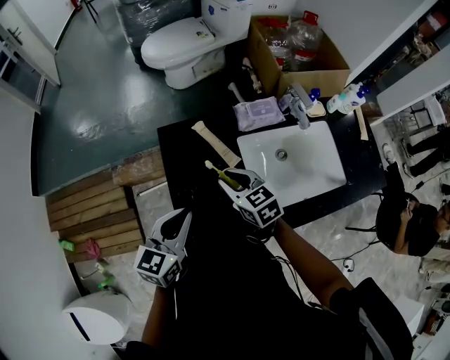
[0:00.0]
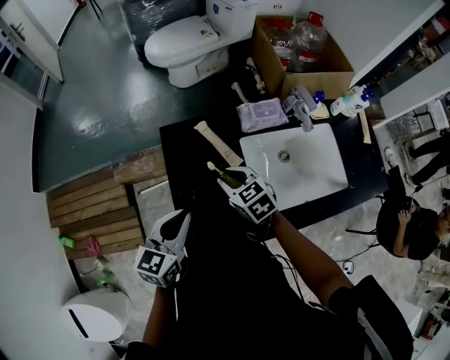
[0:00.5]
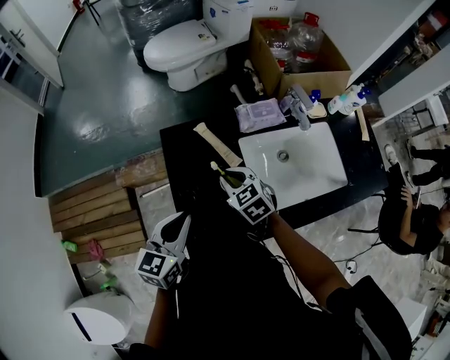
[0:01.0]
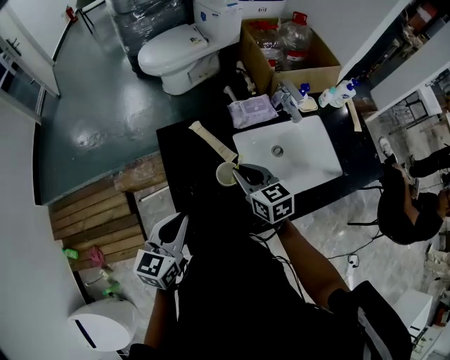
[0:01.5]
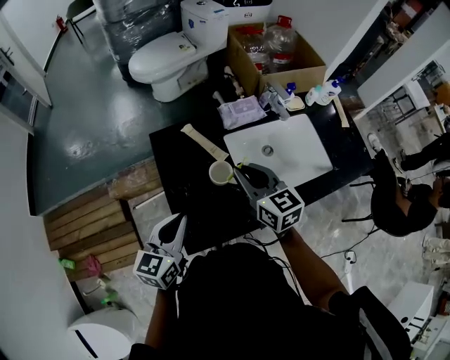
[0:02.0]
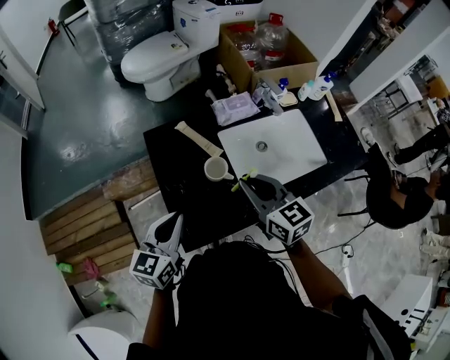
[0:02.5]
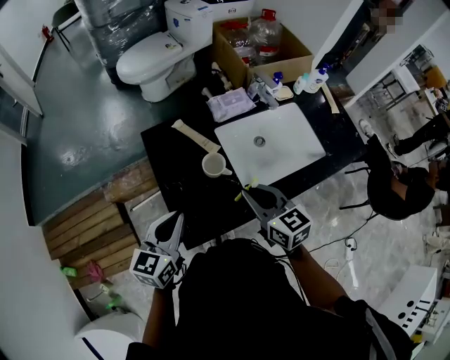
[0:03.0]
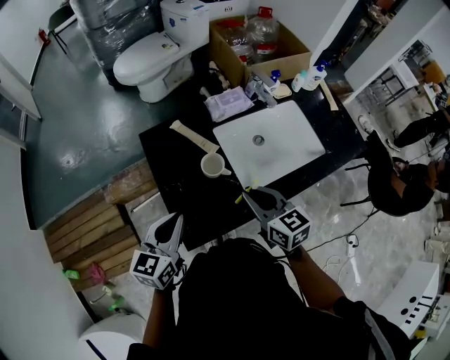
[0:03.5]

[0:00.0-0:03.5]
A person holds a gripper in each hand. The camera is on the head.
0:00.0 to 0:02.0: The right gripper is displaced upward and to the right by about 10 cm, and rotates some 20 degrees.
0:02.0 to 0:03.5: The right gripper goes approximately 10 cm backward.

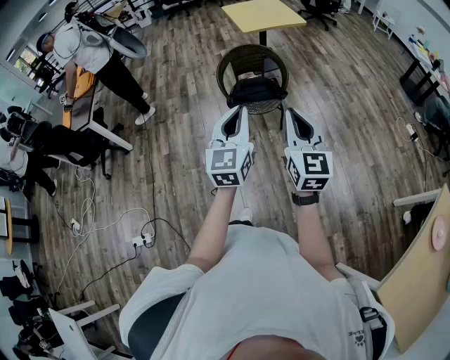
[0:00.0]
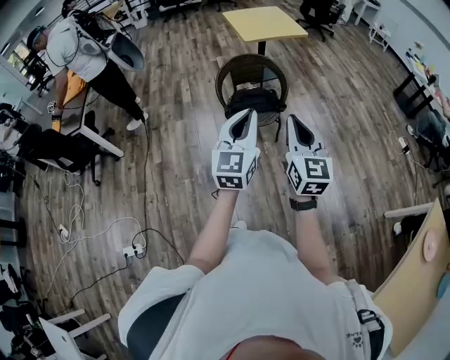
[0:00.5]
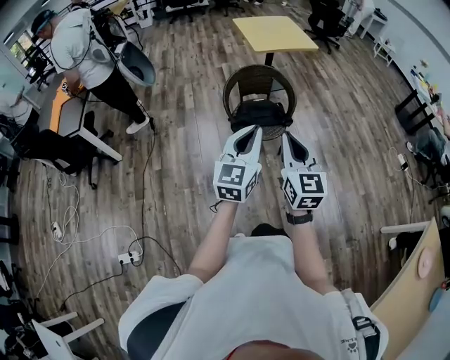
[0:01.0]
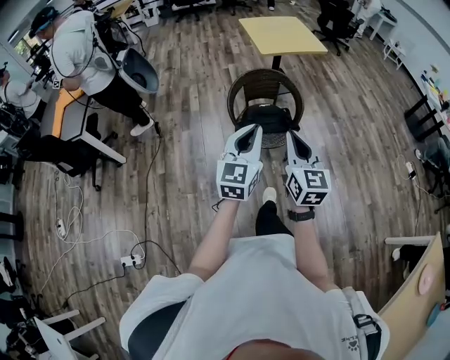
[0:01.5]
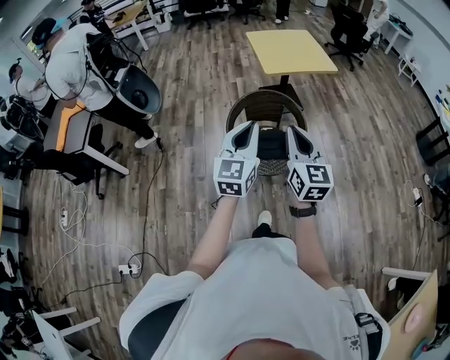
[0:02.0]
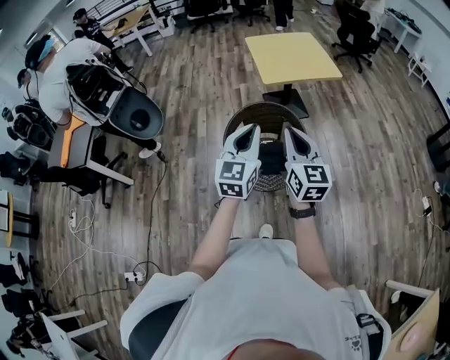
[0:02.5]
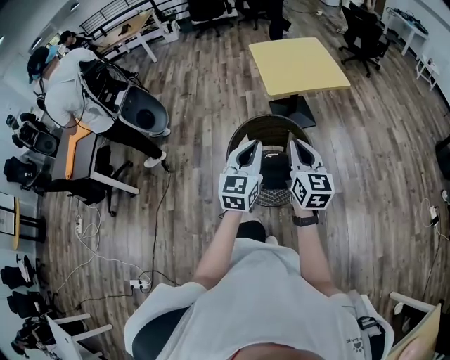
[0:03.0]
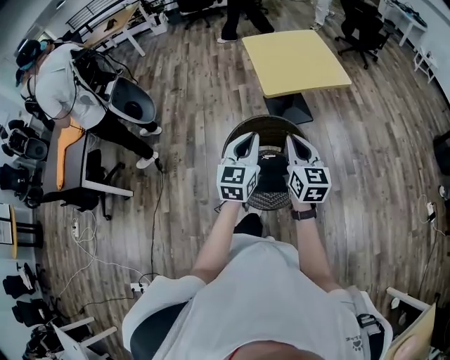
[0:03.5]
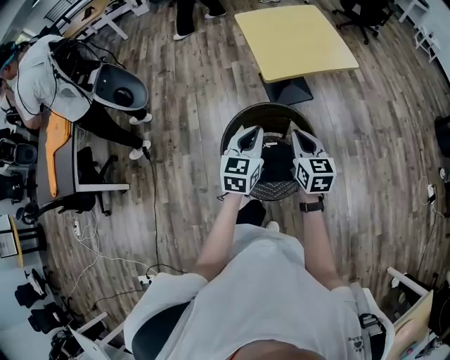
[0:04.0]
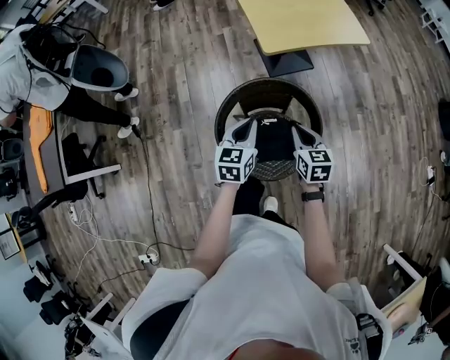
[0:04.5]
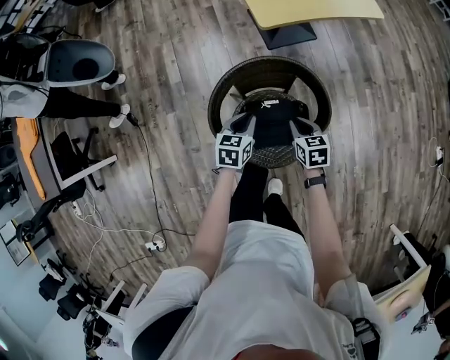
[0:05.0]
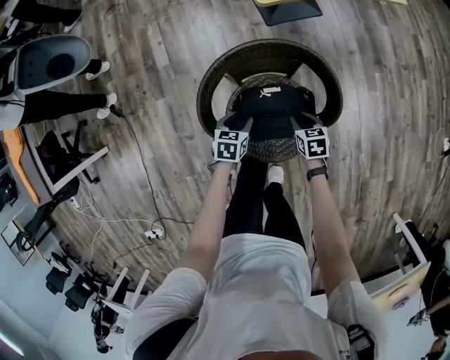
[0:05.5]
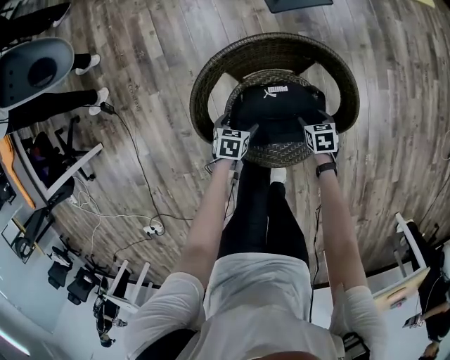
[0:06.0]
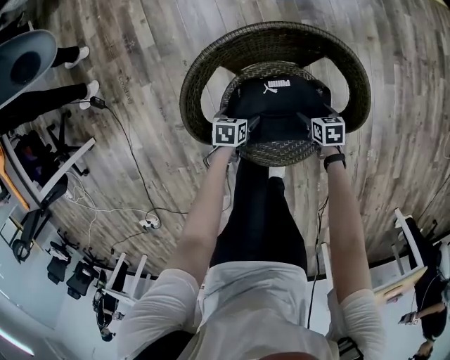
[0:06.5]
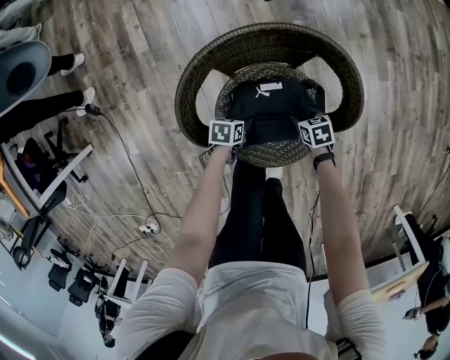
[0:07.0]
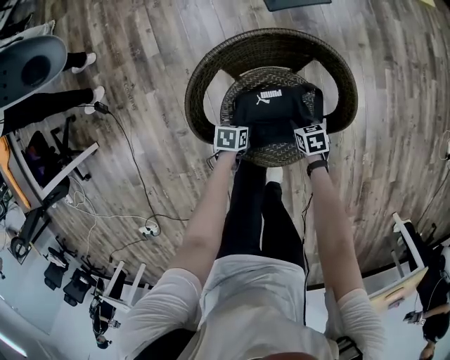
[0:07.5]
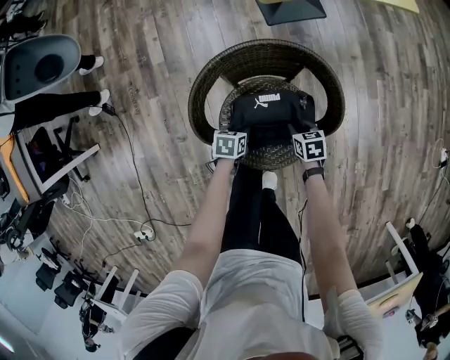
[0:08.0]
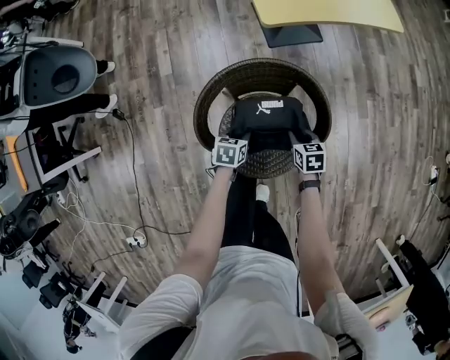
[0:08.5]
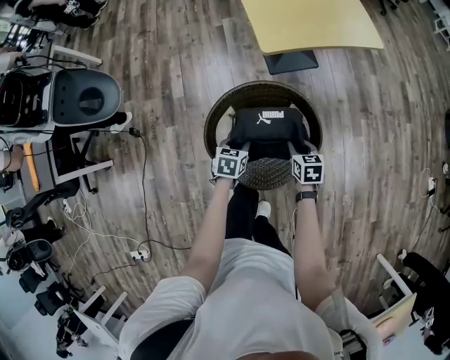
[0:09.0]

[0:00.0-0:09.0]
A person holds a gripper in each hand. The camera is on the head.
0:00.0 to 0:02.0: The two grippers go approximately 35 cm forward.
0:02.0 to 0:04.5: Both grippers move forward and downward, about 50 cm. The right gripper points its fingers approximately 40 degrees further downward. The left gripper changes its angle by about 30 degrees.
0:04.5 to 0:07.0: Both grippers travel together downward, some 50 cm. The left gripper tips its fingers downward by approximately 30 degrees, and opens up; the right gripper turns by about 40 degrees, and opens.
0:07.0 to 0:09.0: The grippers both shift upward by approximately 30 cm. The left gripper rotates approximately 30 degrees. Meanwhile the right gripper turns by roughly 30 degrees.

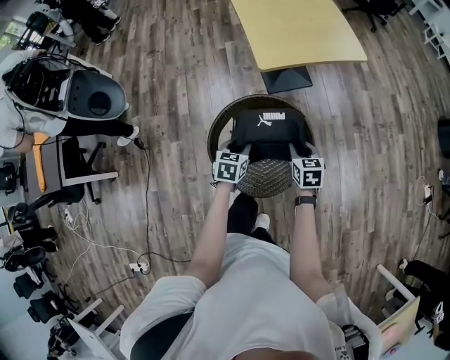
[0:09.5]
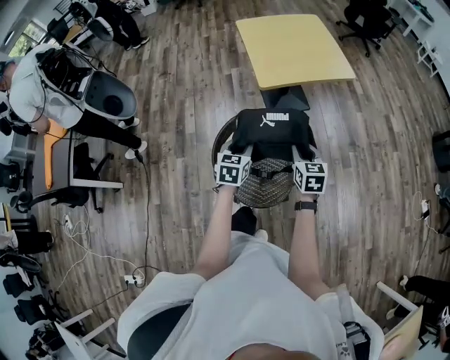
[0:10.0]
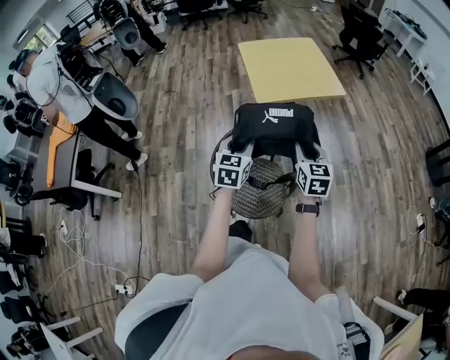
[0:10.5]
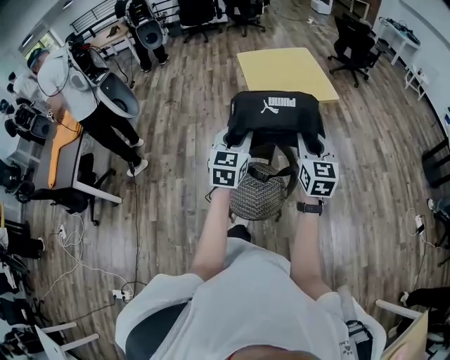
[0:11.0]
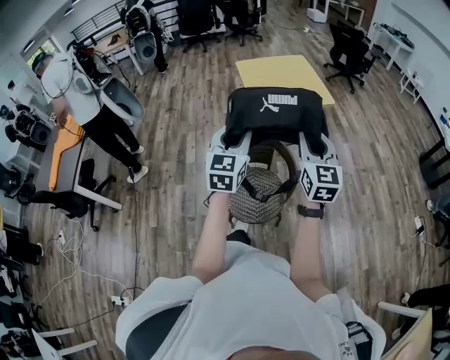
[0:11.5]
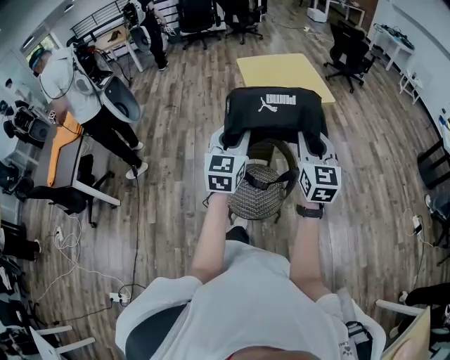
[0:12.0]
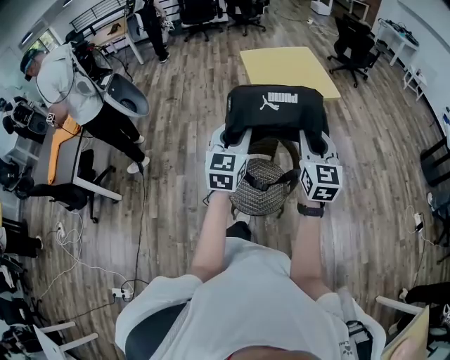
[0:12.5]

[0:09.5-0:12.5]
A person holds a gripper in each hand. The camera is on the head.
0:09.5 to 0:11.0: Both grippers move upward, approximately 35 cm. The right gripper tips its fingers upward by some 40 degrees, while the left gripper points its fingers some 30 degrees further upward.
0:11.0 to 0:12.5: The left gripper moves roughly 5 cm. Meanwhile the right gripper shifts by about 5 cm.

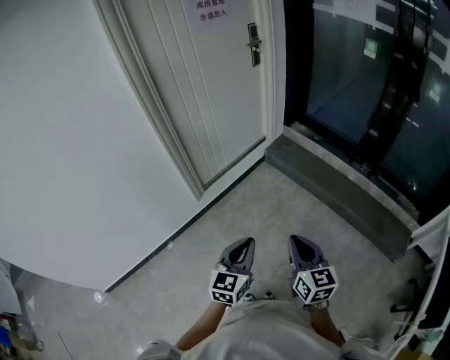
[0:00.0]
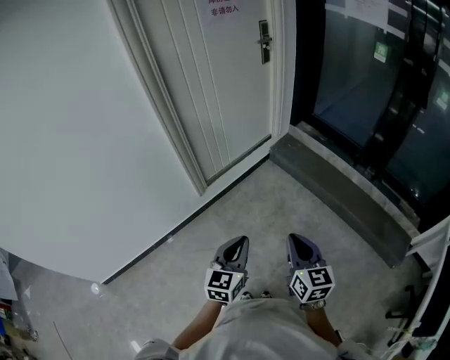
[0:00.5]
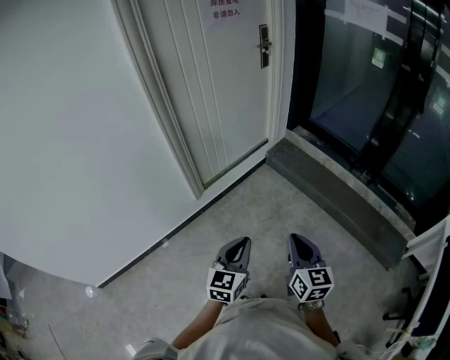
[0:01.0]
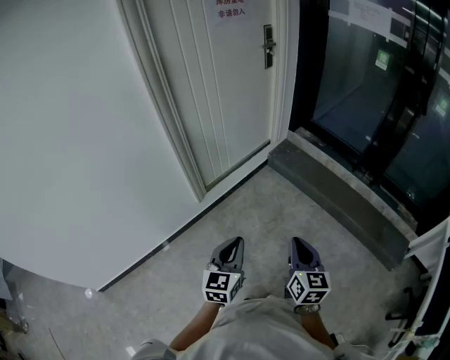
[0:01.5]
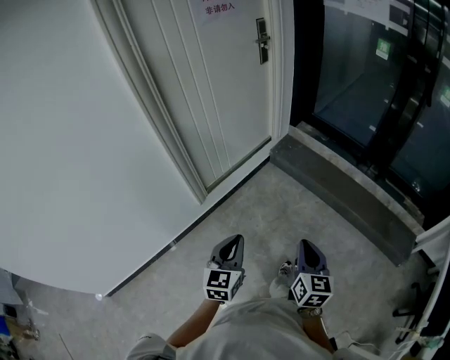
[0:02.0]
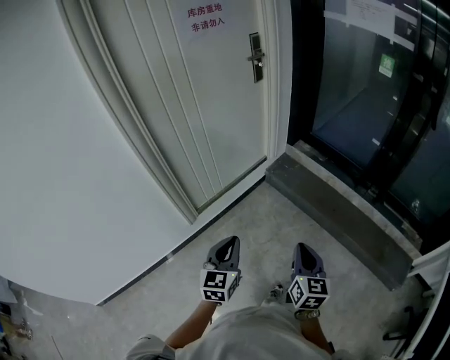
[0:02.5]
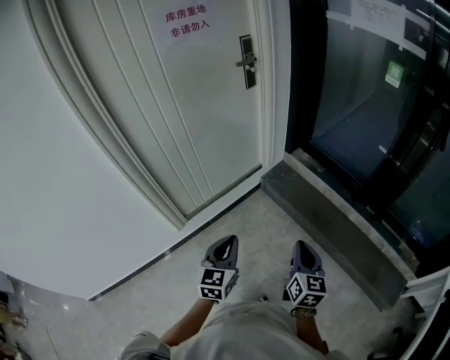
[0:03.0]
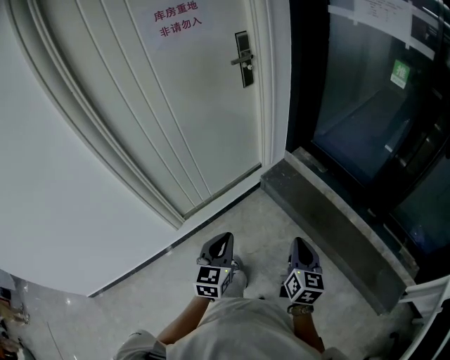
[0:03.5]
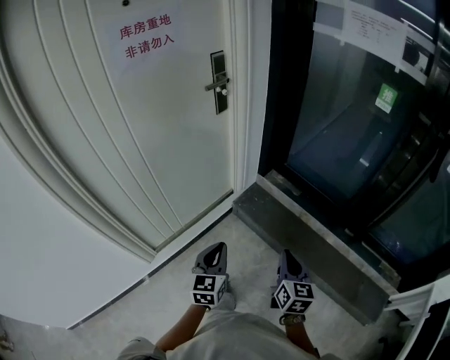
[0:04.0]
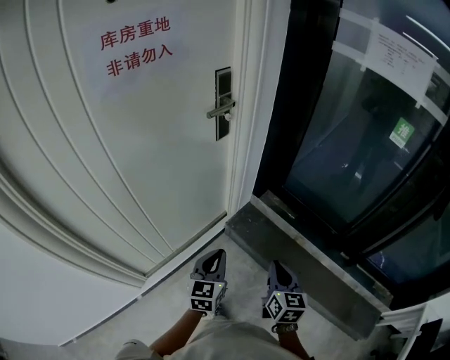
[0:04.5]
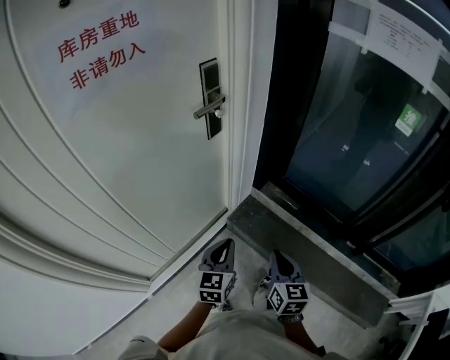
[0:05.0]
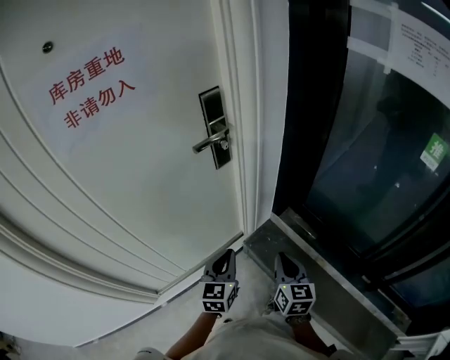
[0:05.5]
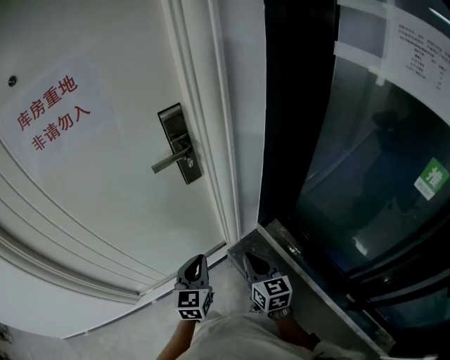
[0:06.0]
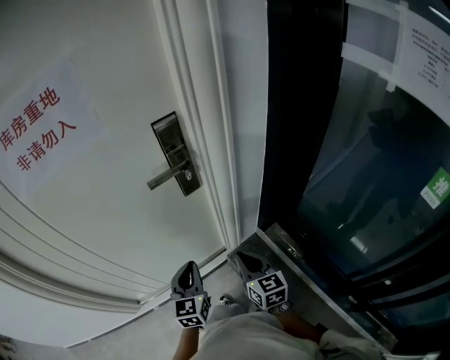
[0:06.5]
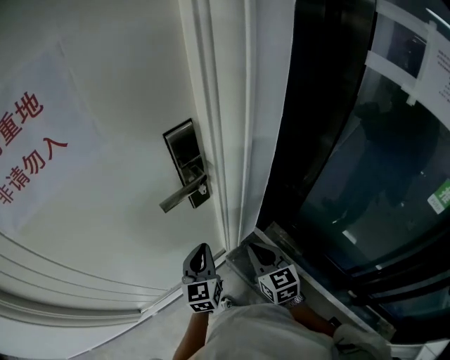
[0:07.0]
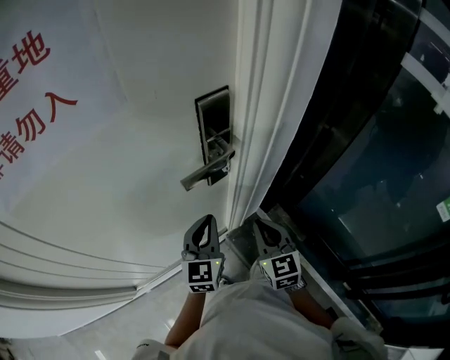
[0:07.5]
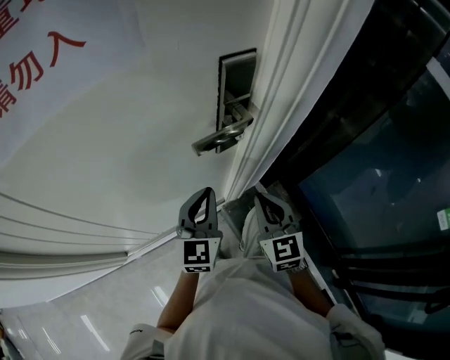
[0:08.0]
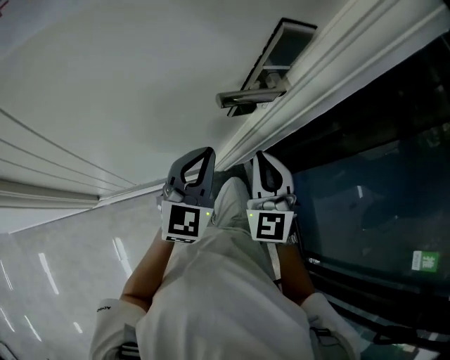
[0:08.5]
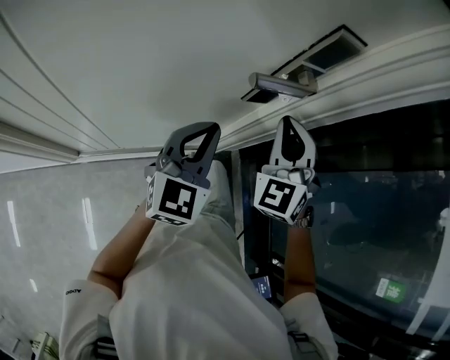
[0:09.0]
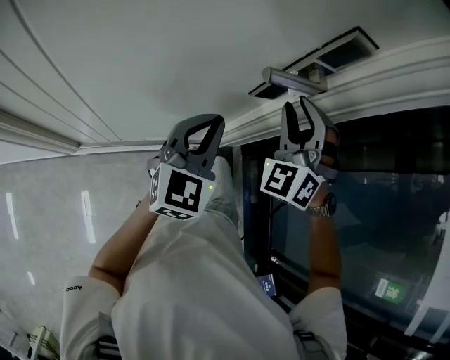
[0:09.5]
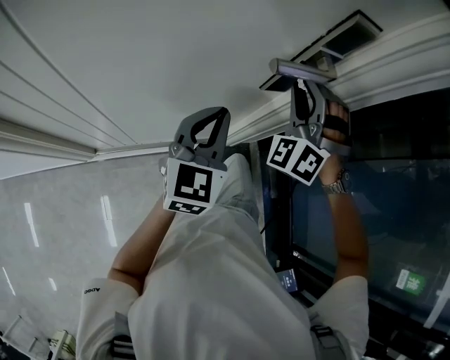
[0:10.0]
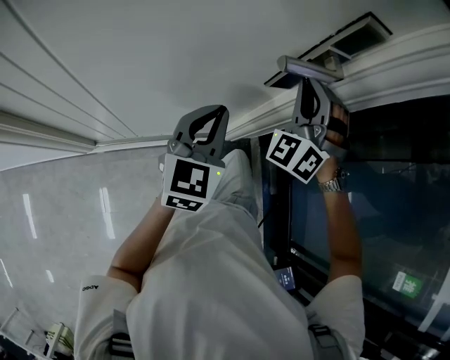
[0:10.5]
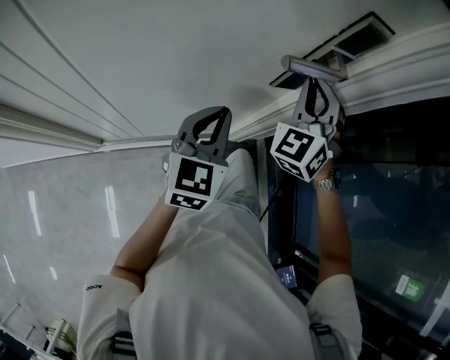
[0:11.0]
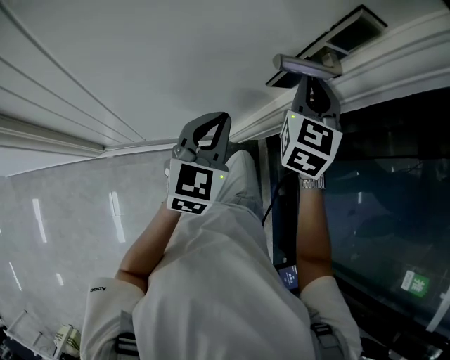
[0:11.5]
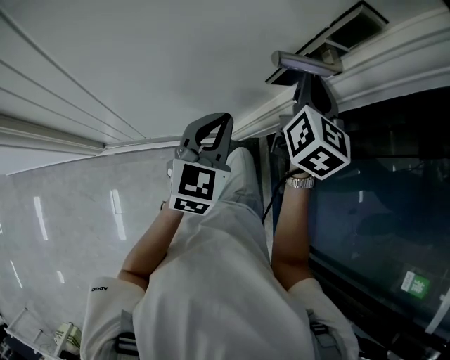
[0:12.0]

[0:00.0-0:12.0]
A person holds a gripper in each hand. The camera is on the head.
0:00.0 to 0:02.0: The right gripper travels forward by about 5 cm; the left gripper is displaced forward and to the left by some 10 cm.
0:02.0 to 0:04.0: The pair of grippers is taken forward, approximately 50 cm.
0:04.0 to 0:06.0: The right gripper shifts by roughly 40 cm, and changes its angle by about 30 degrees, while the left gripper shifts by approximately 40 cm.
0:06.0 to 0:08.0: The right gripper moves forward and to the left, approximately 20 cm, and swivels some 30 degrees. The left gripper moves forward, approximately 20 cm.
0:08.0 to 0:10.0: The right gripper moves forward, upward and to the left, about 15 cm, twists roughly 70 degrees counterclockwise, seen from behind, and opens.
0:10.0 to 0:12.0: The right gripper rolls clockwise, seen from behind, by some 90 degrees, and closes up.
